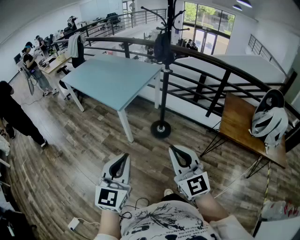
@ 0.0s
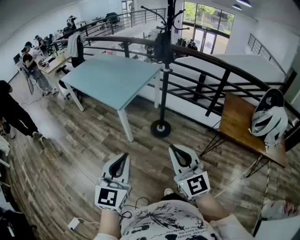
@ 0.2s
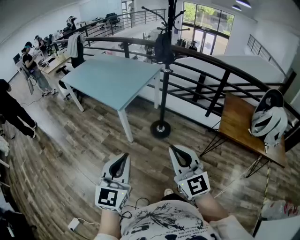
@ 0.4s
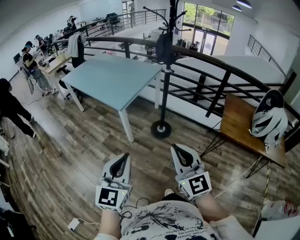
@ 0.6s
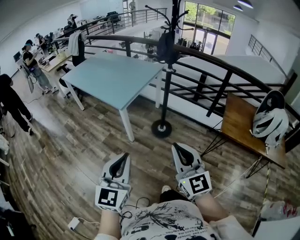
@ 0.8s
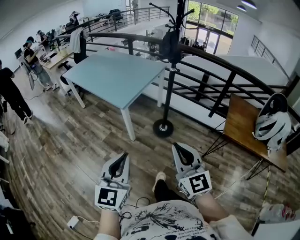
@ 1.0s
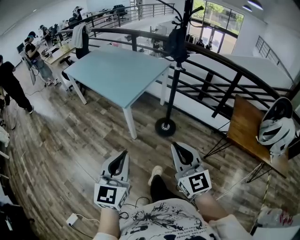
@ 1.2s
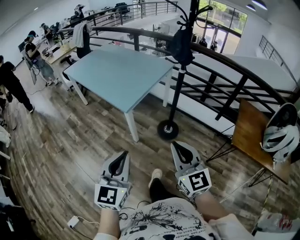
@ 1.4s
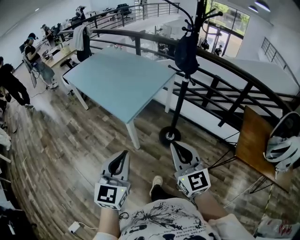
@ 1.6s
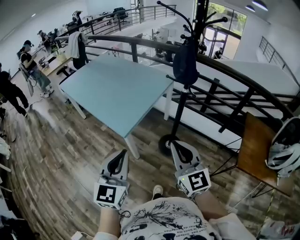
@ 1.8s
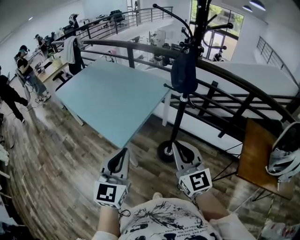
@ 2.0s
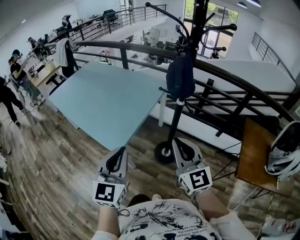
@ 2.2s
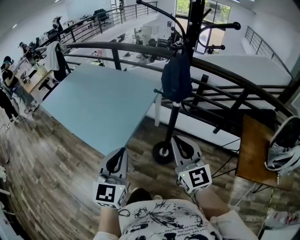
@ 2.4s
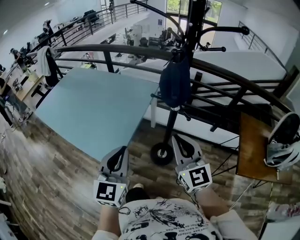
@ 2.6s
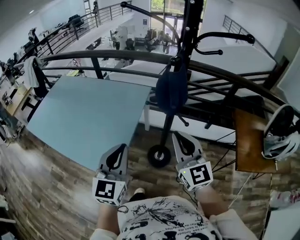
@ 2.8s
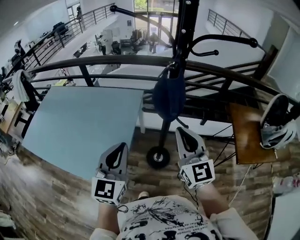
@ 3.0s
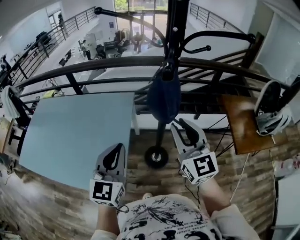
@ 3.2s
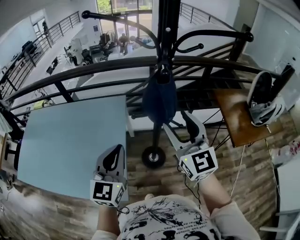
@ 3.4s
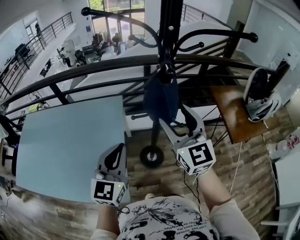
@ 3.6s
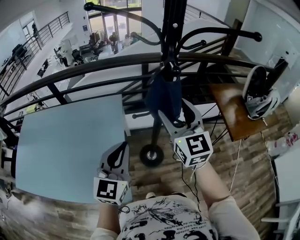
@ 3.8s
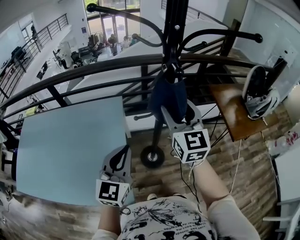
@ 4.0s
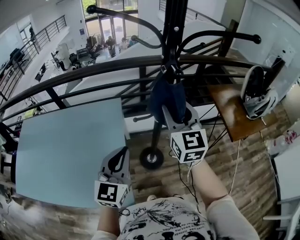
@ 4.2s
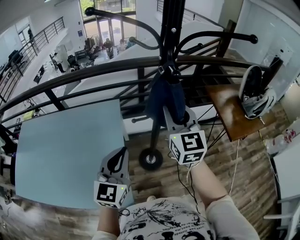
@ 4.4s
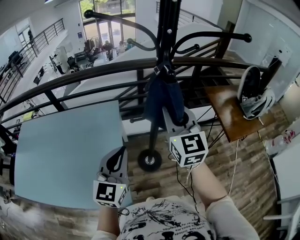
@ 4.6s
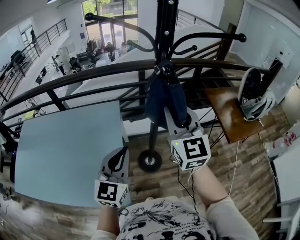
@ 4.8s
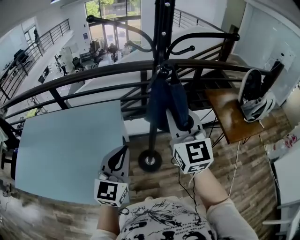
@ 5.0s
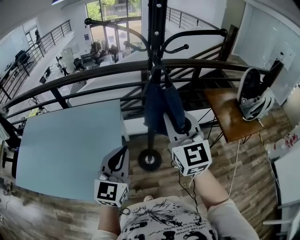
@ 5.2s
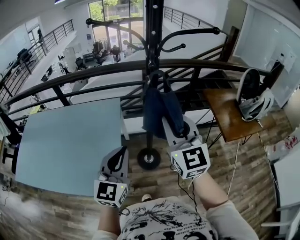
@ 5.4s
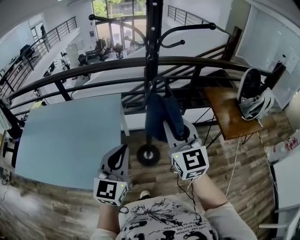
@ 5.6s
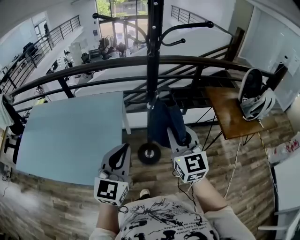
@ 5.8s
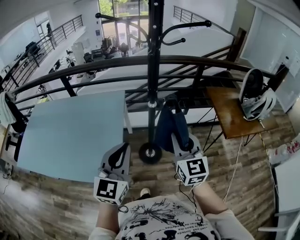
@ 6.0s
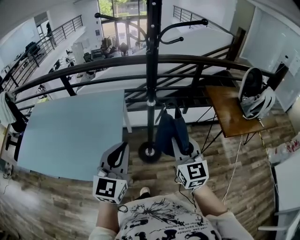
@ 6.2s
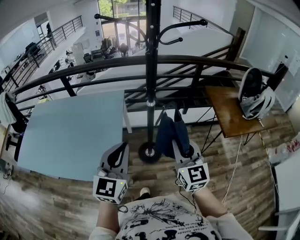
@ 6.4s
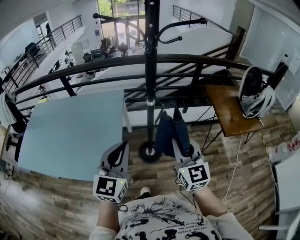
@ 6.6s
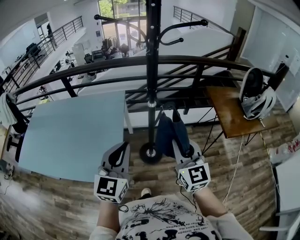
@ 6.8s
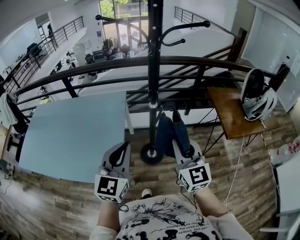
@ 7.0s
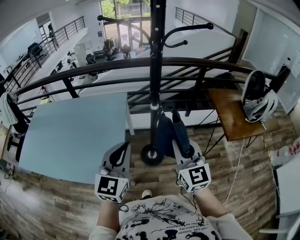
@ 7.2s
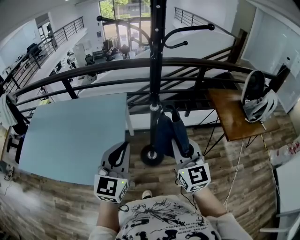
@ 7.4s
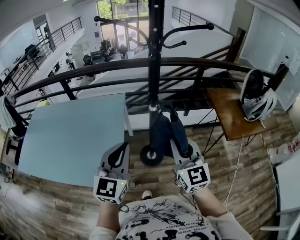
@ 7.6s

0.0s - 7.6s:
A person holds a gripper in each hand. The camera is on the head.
0.0s - 1.6s: The grippers both shift forward by approximately 25 cm.
1.6s - 3.0s: The left gripper moves approximately 40 cm, and changes its angle by roughly 30 degrees. The right gripper moves some 40 cm, and swivels roughly 30 degrees.
3.0s - 4.6s: Both grippers travel together forward, approximately 10 cm. The right gripper rotates approximately 20 degrees, and opens, then closes once more, while the left gripper turns by about 20 degrees.
4.6s - 6.0s: The grippers both shift backward and to the right by roughly 20 cm.
6.0s - 7.6s: The grippers stay close to where they were, moving slightly.

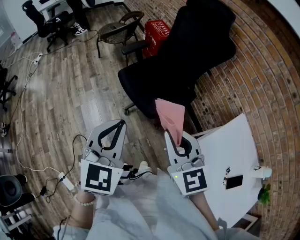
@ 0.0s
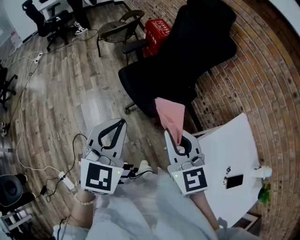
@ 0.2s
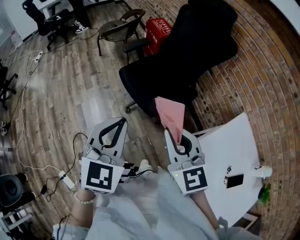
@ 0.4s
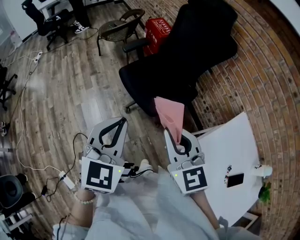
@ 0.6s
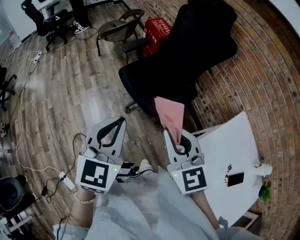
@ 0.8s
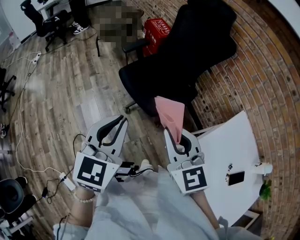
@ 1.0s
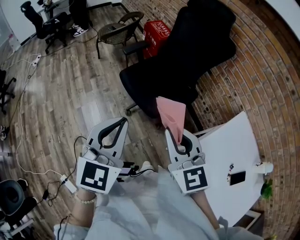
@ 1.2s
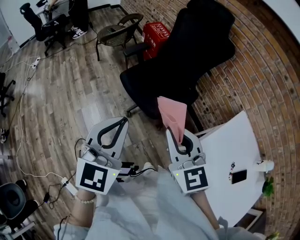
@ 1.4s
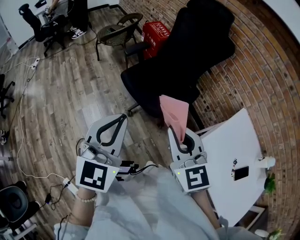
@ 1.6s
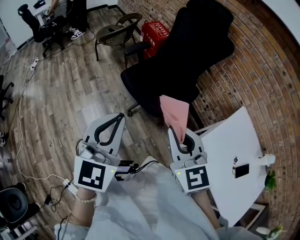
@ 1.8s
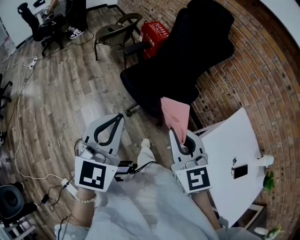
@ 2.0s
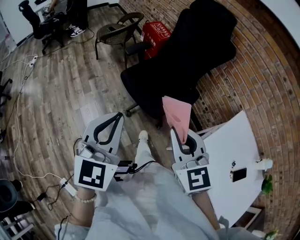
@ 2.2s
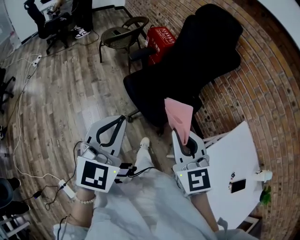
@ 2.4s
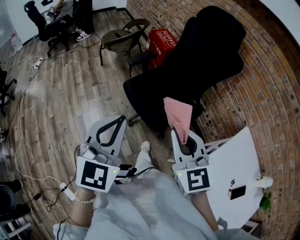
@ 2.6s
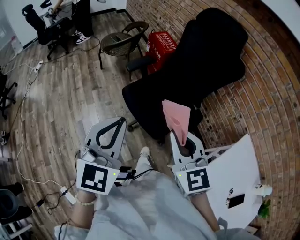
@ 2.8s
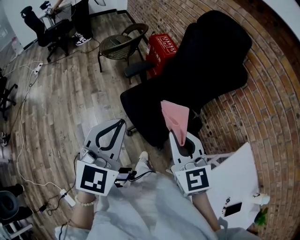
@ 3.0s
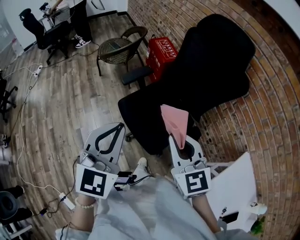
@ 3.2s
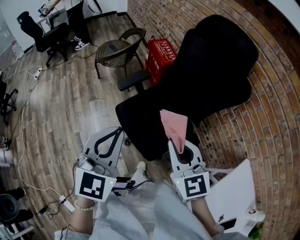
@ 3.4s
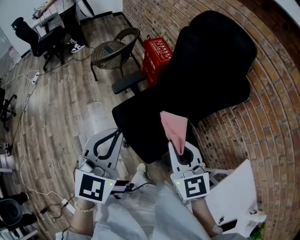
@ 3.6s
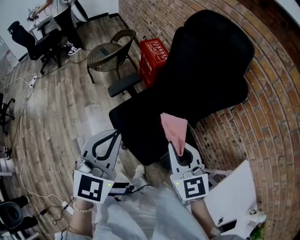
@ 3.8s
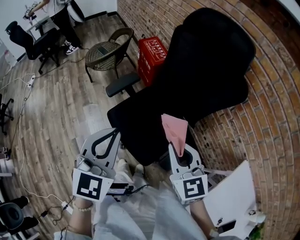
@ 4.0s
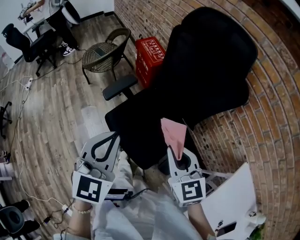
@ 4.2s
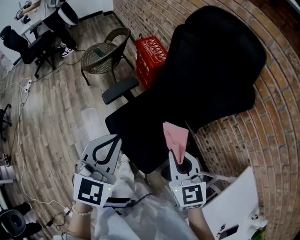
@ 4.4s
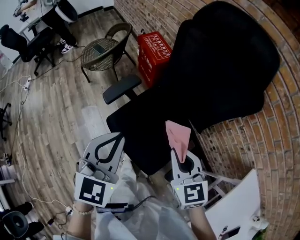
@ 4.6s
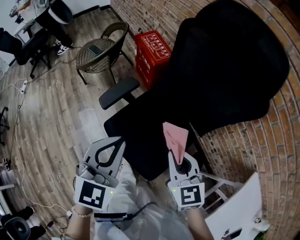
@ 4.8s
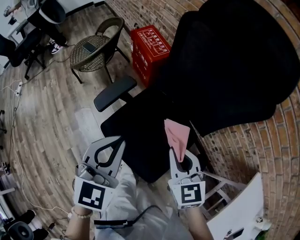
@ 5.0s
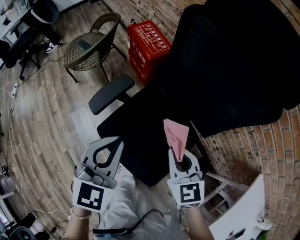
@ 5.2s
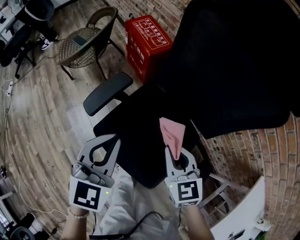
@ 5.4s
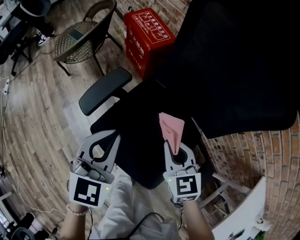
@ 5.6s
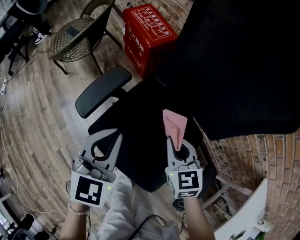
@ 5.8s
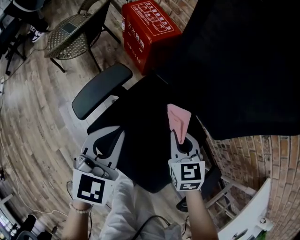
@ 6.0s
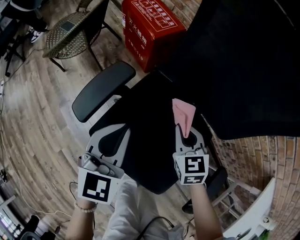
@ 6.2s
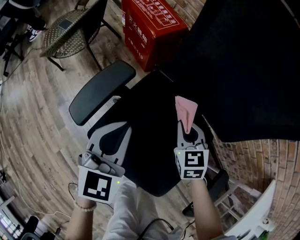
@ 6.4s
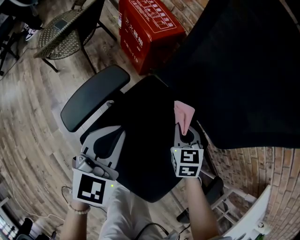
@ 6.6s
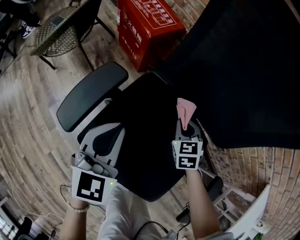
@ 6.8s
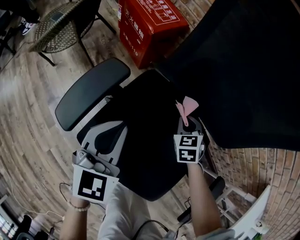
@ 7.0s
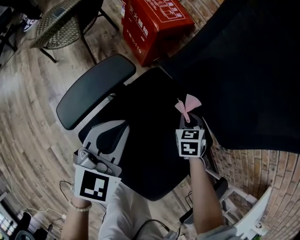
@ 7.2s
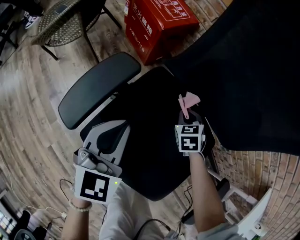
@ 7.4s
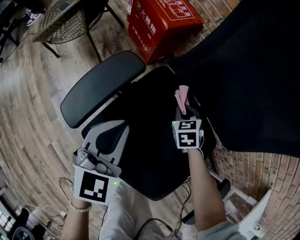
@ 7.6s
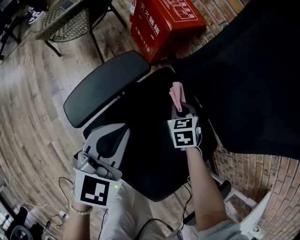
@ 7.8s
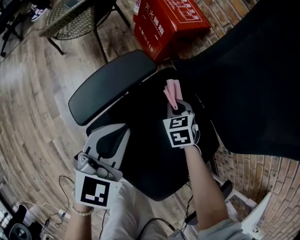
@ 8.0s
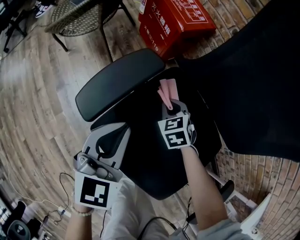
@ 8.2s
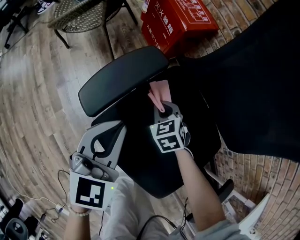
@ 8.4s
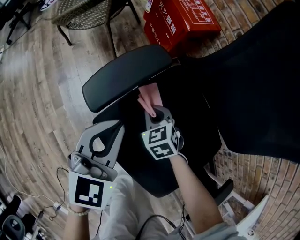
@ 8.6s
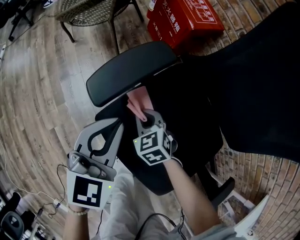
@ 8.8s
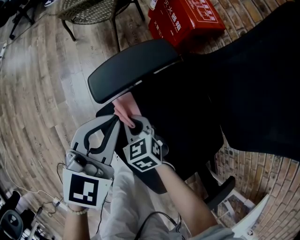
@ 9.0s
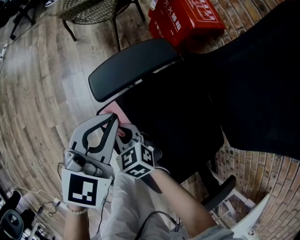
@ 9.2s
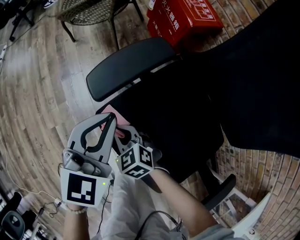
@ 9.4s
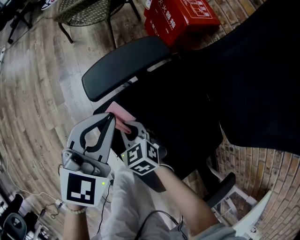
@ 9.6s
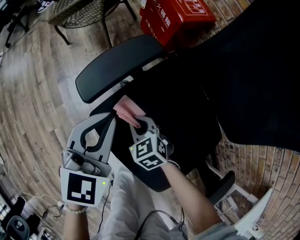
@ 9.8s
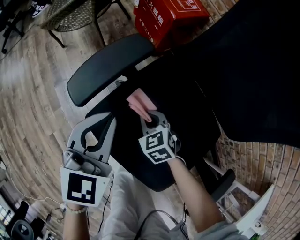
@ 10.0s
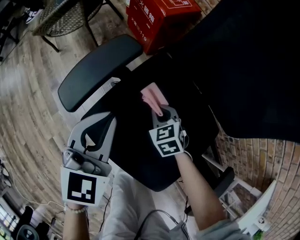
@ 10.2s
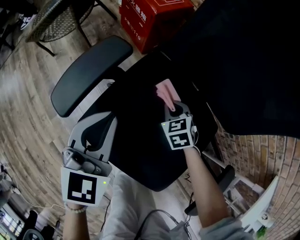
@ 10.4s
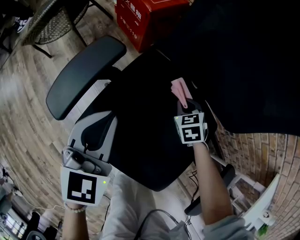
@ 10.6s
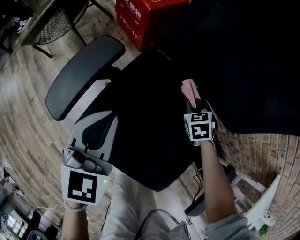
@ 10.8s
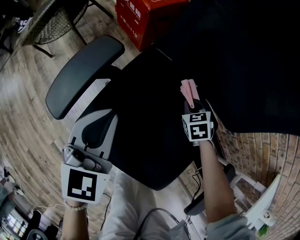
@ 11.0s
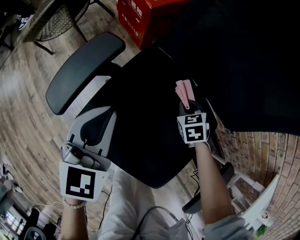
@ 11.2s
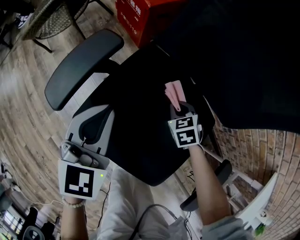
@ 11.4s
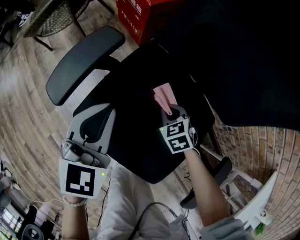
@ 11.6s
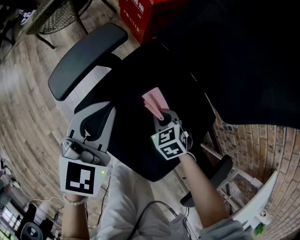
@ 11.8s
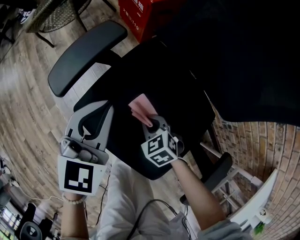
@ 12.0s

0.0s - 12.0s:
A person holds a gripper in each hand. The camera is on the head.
0.0s - 1.6s: The two grippers go about 5 cm to the left.
1.6s - 3.0s: The grippers both shift forward by about 20 cm.
3.0s - 4.4s: The left gripper heads forward, covering approximately 20 cm; the right gripper goes roughly 25 cm forward, to the right and downward.
4.4s - 6.0s: Both grippers move downward and forward, roughly 35 cm. The right gripper swivels about 20 degrees.
6.0s - 7.6s: The left gripper is displaced downward by approximately 10 cm. The right gripper moves downward and forward, roughly 25 cm, and turns by roughly 20 degrees.
7.6s - 9.0s: The left gripper ends up about 10 cm from where it was; the right gripper moves approximately 30 cm, and swivels about 40 degrees.
9.0s - 10.4s: The left gripper changes place by roughly 10 cm; the right gripper shifts by roughly 25 cm, and rotates approximately 30 degrees.
10.4s - 12.0s: The right gripper shifts by about 15 cm.

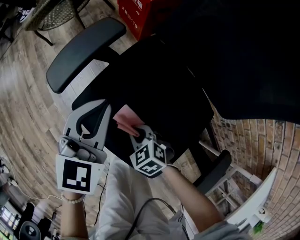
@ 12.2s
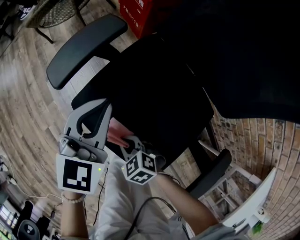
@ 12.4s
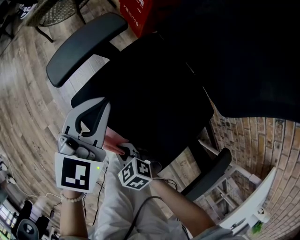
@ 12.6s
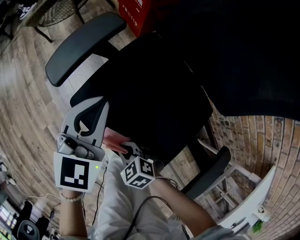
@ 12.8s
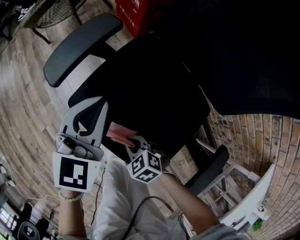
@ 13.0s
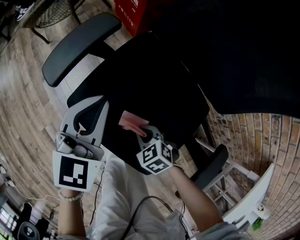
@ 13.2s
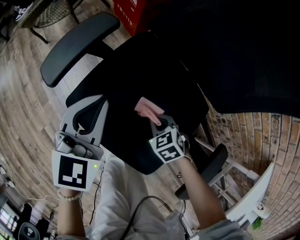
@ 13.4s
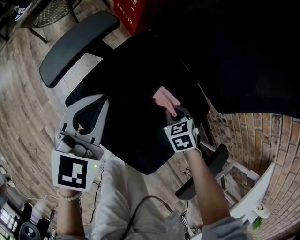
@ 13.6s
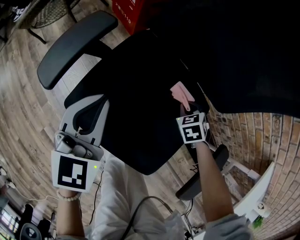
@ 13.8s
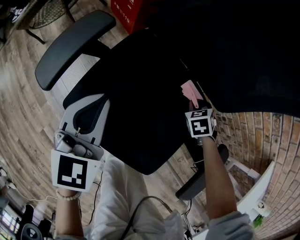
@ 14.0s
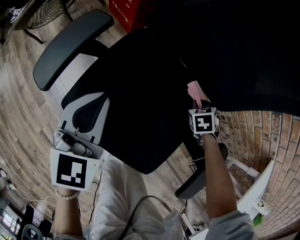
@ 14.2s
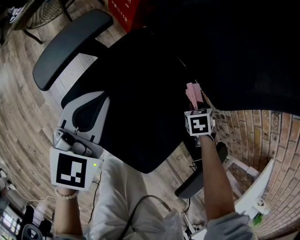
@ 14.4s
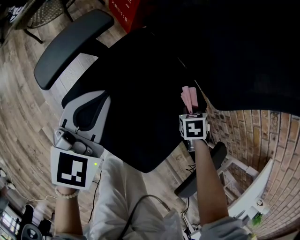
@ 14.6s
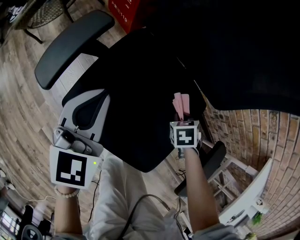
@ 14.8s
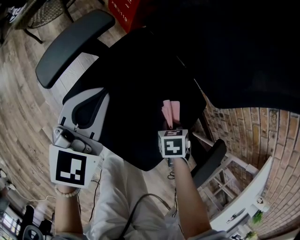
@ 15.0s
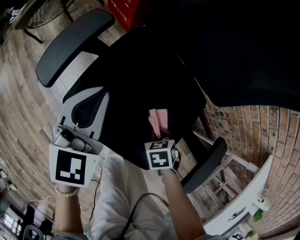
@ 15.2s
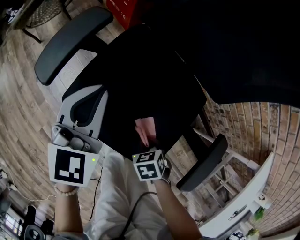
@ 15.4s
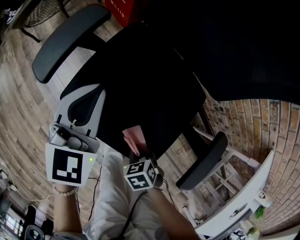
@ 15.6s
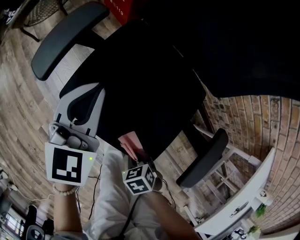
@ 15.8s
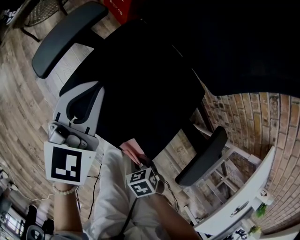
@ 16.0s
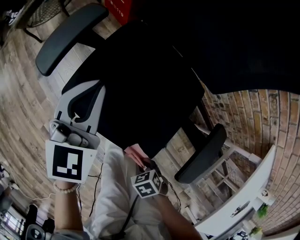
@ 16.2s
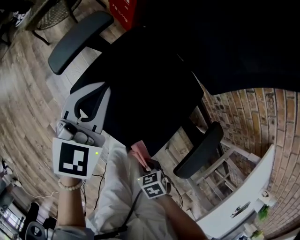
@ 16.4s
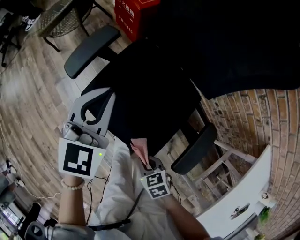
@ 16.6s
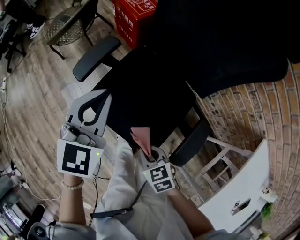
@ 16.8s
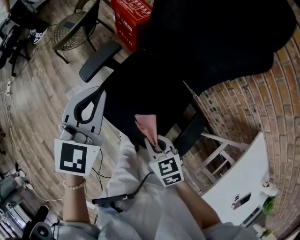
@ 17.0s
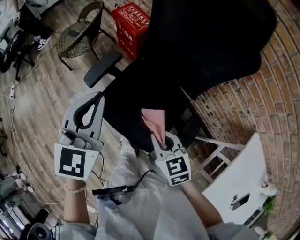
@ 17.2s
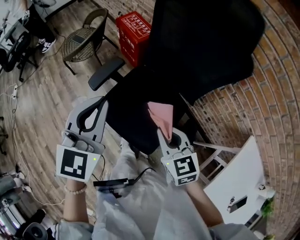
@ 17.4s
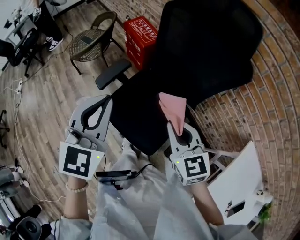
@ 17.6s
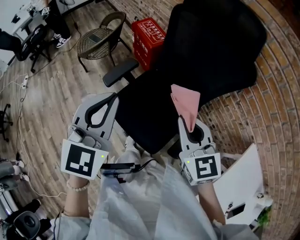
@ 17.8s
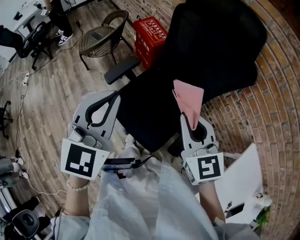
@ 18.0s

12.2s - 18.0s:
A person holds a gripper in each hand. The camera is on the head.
12.2s - 13.6s: The right gripper shifts by about 20 cm, and changes its angle by approximately 30 degrees.
13.6s - 15.0s: The right gripper swivels some 30 degrees.
15.0s - 16.6s: The left gripper goes some 10 cm upward; the right gripper ends up roughly 25 cm from where it was, and swivels roughly 30 degrees.
16.6s - 18.0s: The right gripper travels upward by roughly 40 cm, and tilts its fingers about 40 degrees upward. The left gripper goes approximately 30 cm upward and backward.
